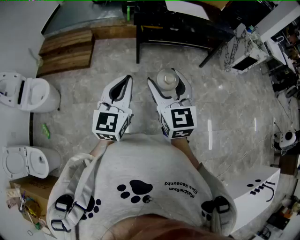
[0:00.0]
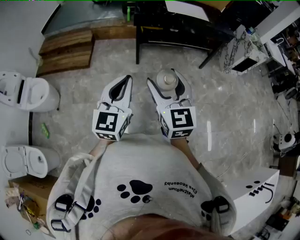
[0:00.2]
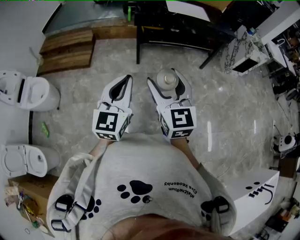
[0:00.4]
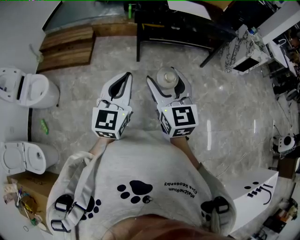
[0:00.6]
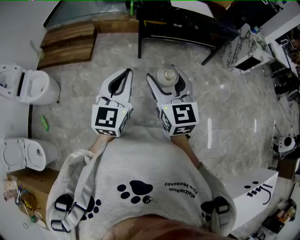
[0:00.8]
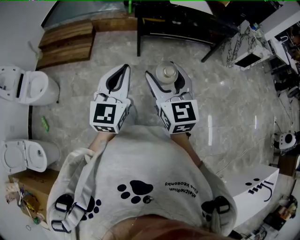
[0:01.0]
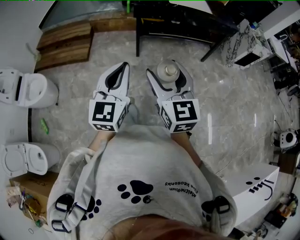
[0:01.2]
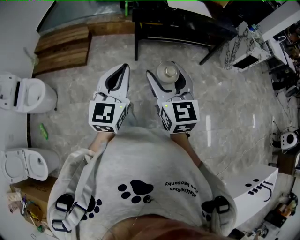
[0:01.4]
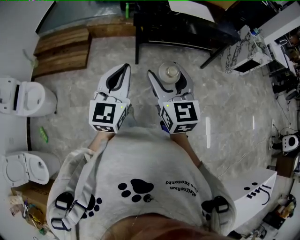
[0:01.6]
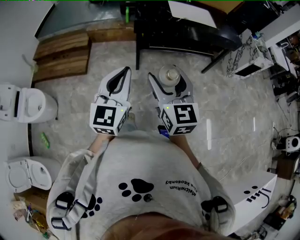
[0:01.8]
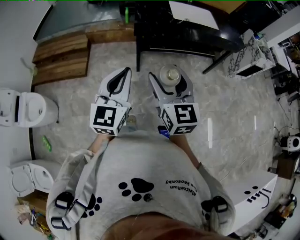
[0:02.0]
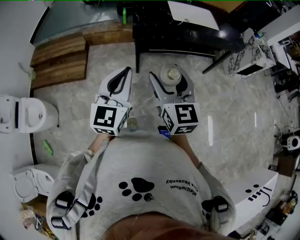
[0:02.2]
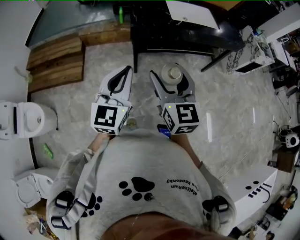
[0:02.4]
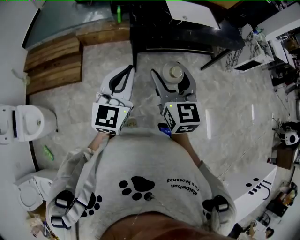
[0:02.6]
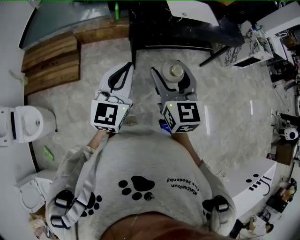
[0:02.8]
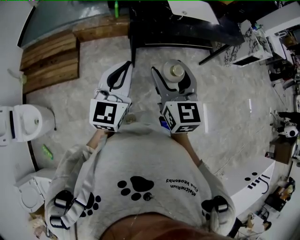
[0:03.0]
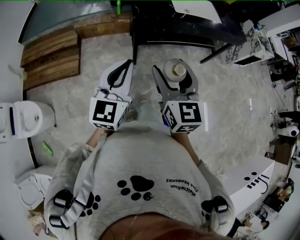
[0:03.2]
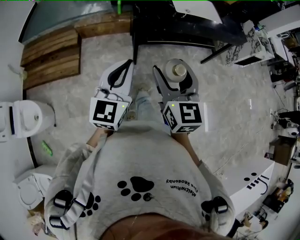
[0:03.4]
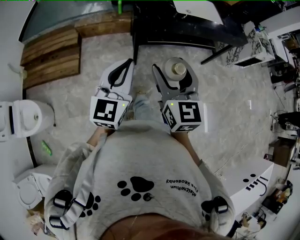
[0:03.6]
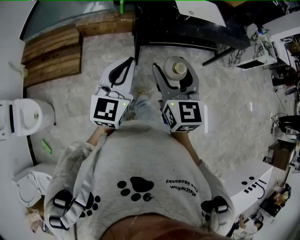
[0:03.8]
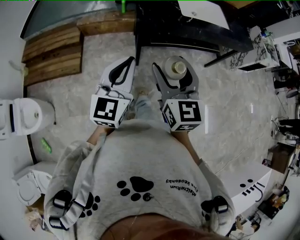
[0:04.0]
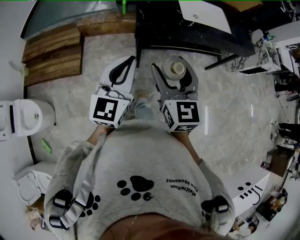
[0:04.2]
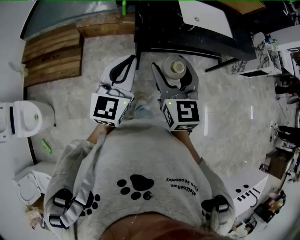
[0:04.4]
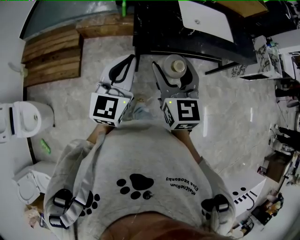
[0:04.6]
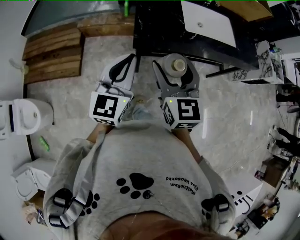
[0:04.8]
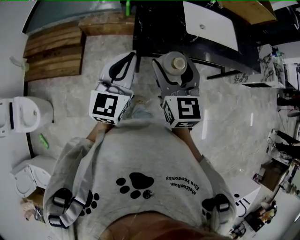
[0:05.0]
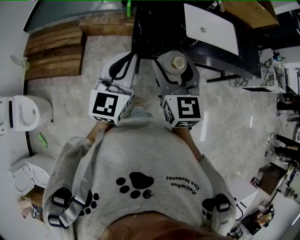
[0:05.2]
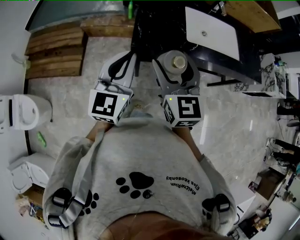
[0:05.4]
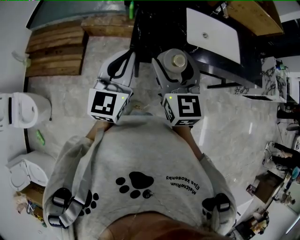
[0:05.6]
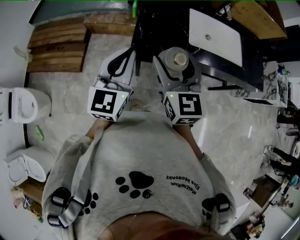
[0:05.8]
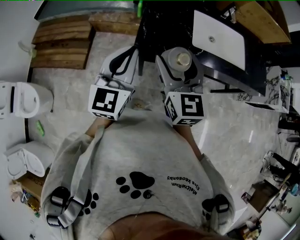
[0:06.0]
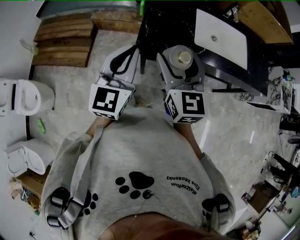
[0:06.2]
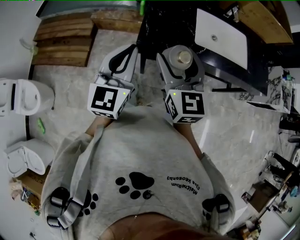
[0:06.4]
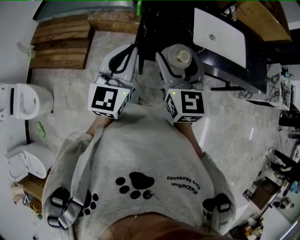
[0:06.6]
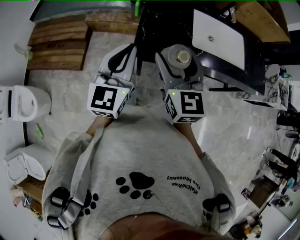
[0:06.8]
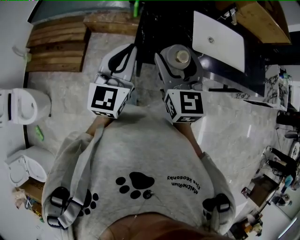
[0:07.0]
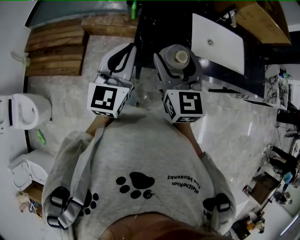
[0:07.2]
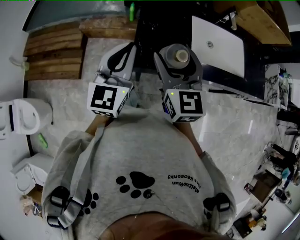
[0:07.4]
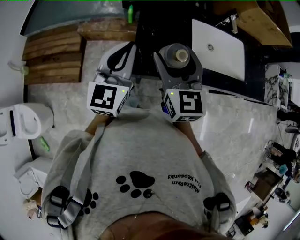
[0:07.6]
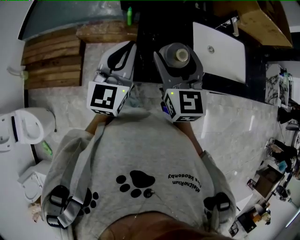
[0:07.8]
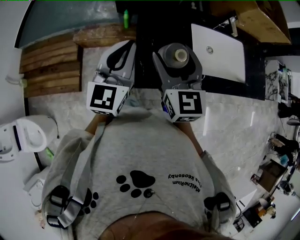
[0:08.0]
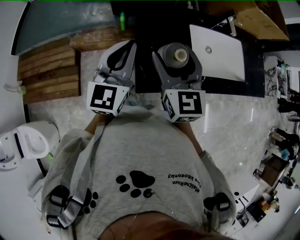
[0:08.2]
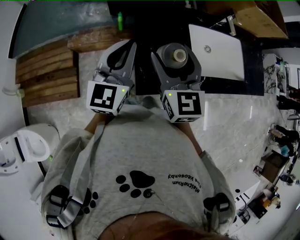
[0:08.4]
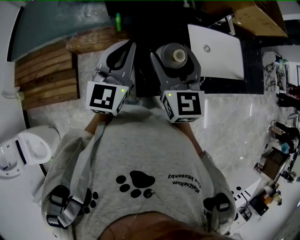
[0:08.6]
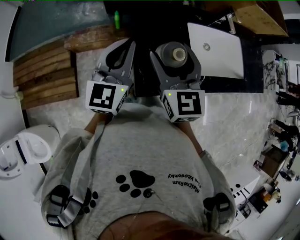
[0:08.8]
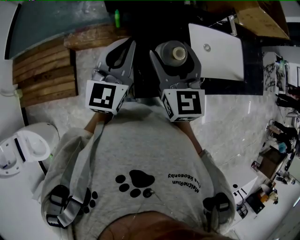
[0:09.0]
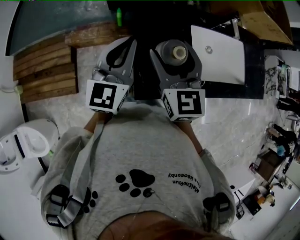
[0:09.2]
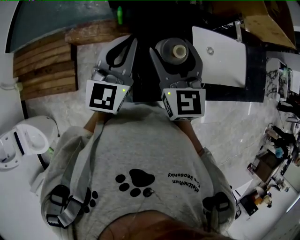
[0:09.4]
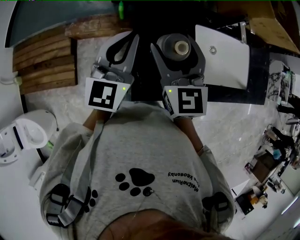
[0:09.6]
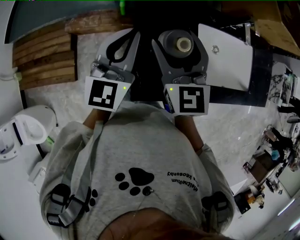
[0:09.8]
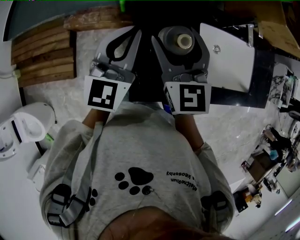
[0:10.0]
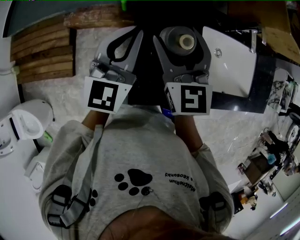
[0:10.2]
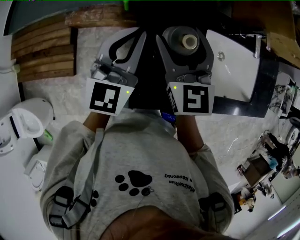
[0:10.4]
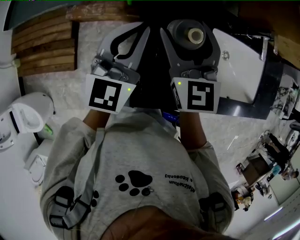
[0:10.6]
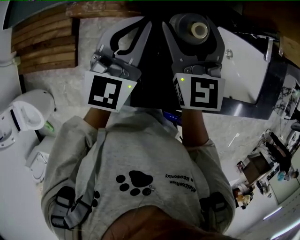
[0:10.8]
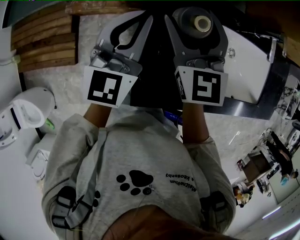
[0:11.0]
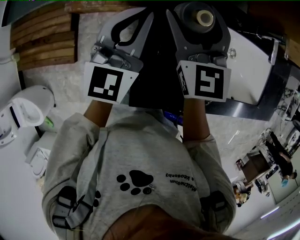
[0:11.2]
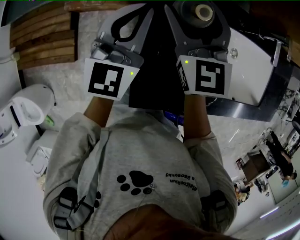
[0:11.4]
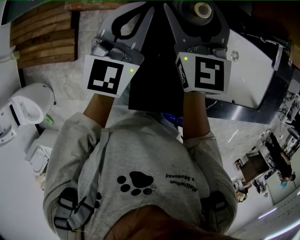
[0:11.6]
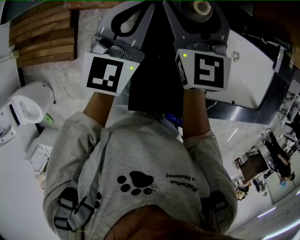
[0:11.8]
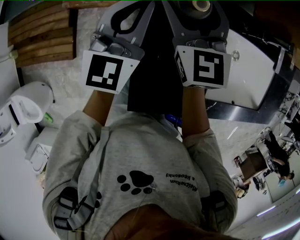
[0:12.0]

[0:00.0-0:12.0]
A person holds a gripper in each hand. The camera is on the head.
0.0 to 1.6 s: Both grippers move forward, roughly 15 cm.
1.6 to 3.0 s: The two grippers go roughly 20 cm forward.
3.0 to 4.4 s: Both grippers move forward, approximately 15 cm.
4.4 to 6.0 s: Both grippers move forward, roughly 15 cm.
6.0 to 7.6 s: The grippers both shift forward by about 15 cm.
7.6 to 9.0 s: Both grippers travel together forward, some 10 cm.
9.0 to 10.4 s: Both grippers travel together forward, roughly 10 cm.
10.4 to 12.0 s: The two grippers go approximately 10 cm forward and downward.

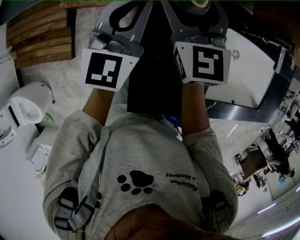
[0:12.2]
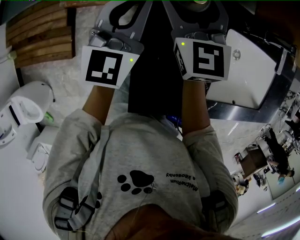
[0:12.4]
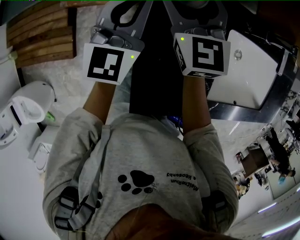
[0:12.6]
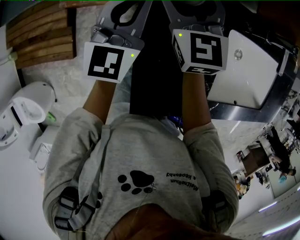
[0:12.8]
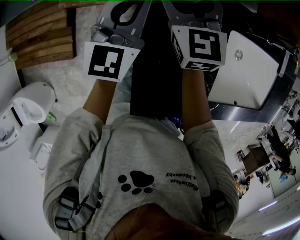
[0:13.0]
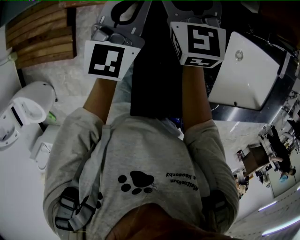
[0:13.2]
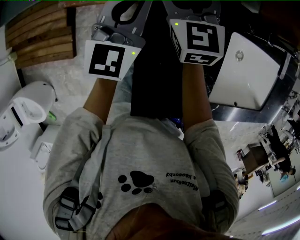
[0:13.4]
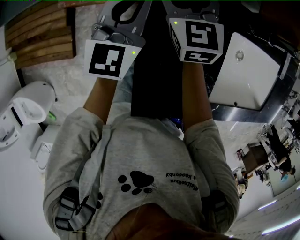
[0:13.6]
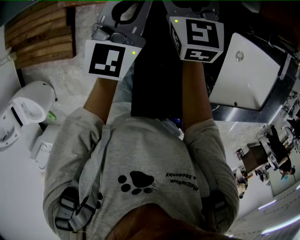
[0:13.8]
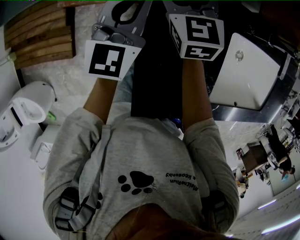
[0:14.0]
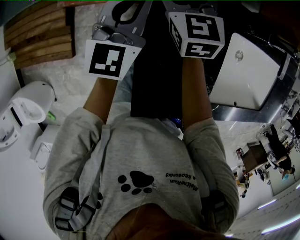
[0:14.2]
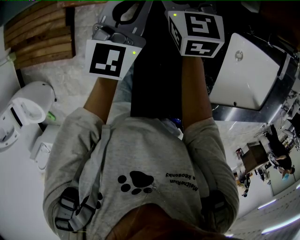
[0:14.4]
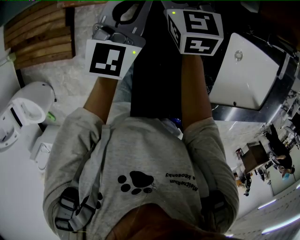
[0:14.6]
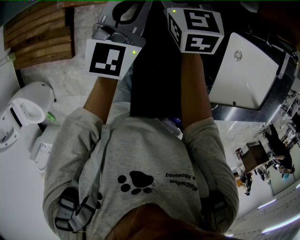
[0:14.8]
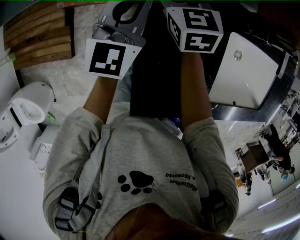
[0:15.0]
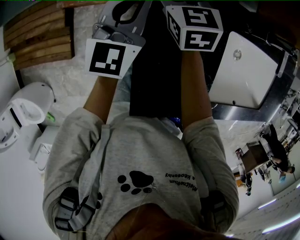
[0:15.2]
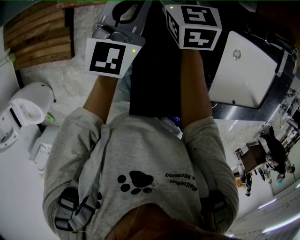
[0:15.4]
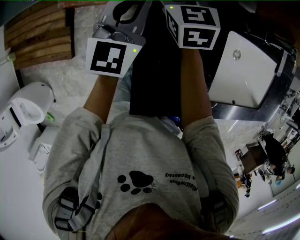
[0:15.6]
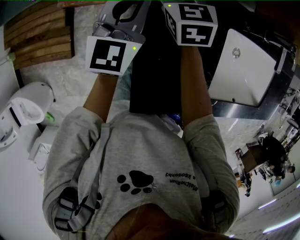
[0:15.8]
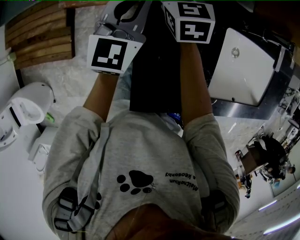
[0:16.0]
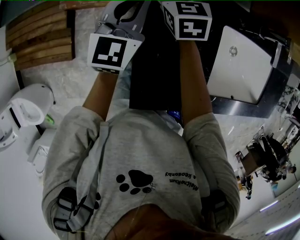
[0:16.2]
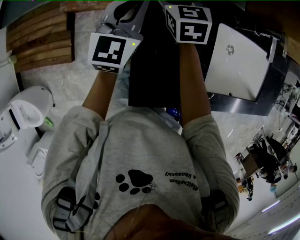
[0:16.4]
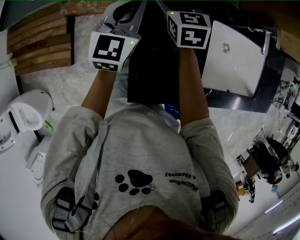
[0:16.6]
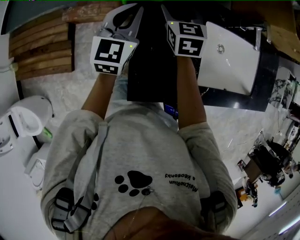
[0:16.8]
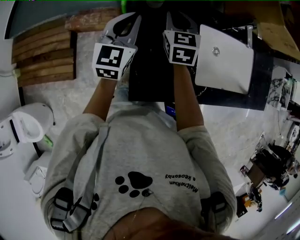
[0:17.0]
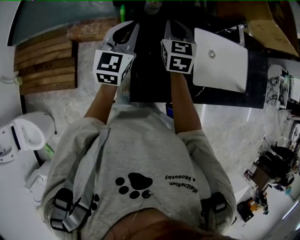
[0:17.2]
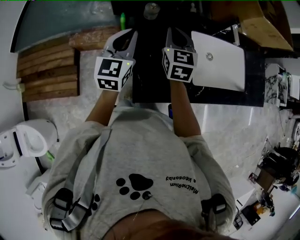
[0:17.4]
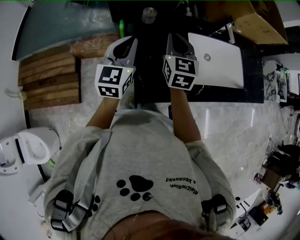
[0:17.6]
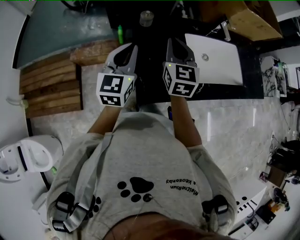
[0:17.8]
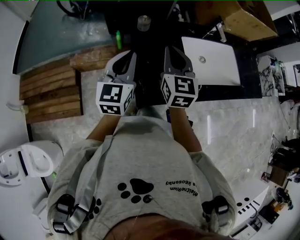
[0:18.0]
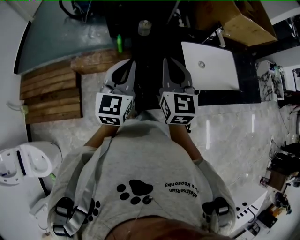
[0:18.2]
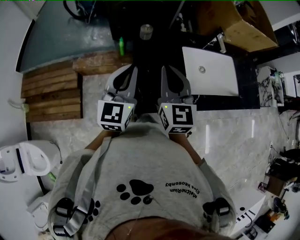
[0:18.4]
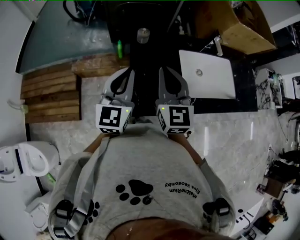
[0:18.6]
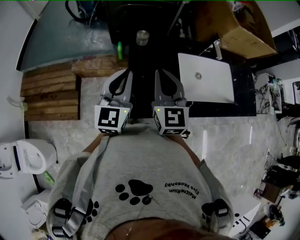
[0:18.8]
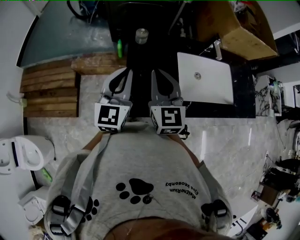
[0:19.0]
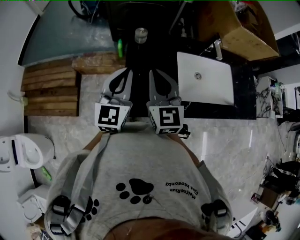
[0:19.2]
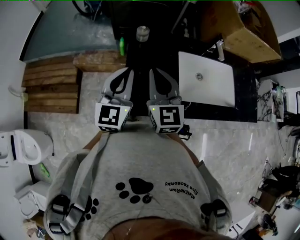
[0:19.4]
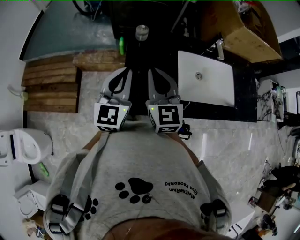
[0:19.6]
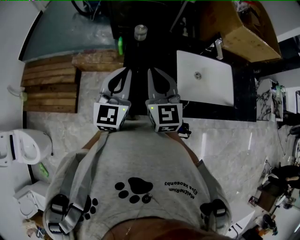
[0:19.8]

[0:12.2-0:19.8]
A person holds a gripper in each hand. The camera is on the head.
12.2 to 13.8 s: The left gripper shifts by approximately 5 cm, while the right gripper heads downward and forward, covering approximately 10 cm.
13.8 to 15.2 s: The grippers stay close to where they were, moving slightly.
15.2 to 16.8 s: The right gripper is displaced backward, to the right and upward by about 10 cm. The left gripper heads backward, covering approximately 5 cm.
16.8 to 18.2 s: The two grippers go approximately 25 cm backward and upward. The right gripper changes its angle by about 30 degrees, and closes its fingers.
18.2 to 19.8 s: The grippers stay close to where they were, moving slightly.

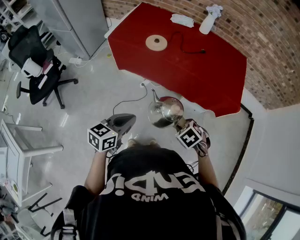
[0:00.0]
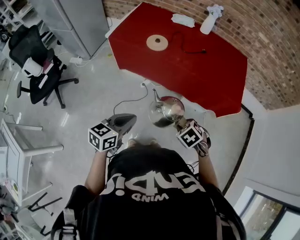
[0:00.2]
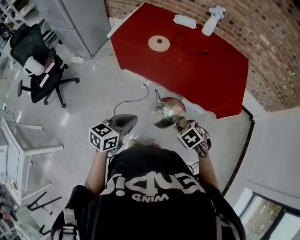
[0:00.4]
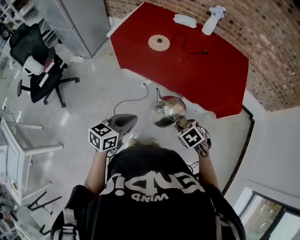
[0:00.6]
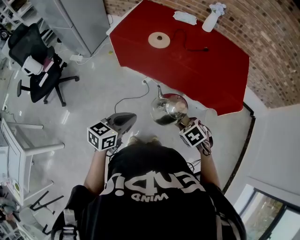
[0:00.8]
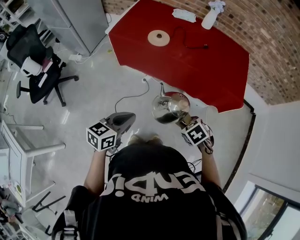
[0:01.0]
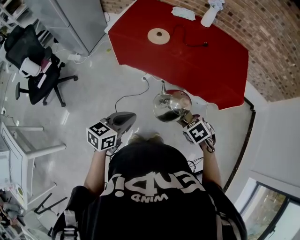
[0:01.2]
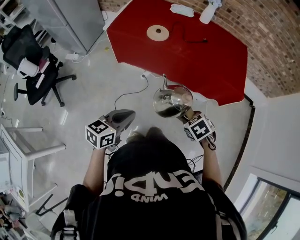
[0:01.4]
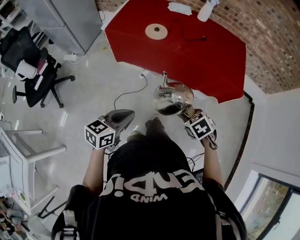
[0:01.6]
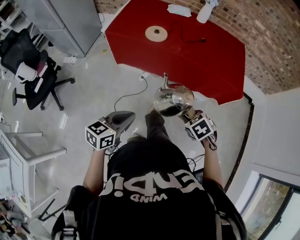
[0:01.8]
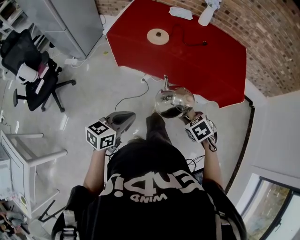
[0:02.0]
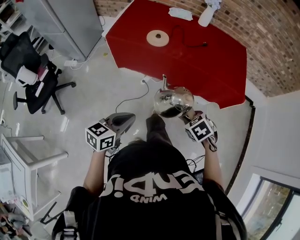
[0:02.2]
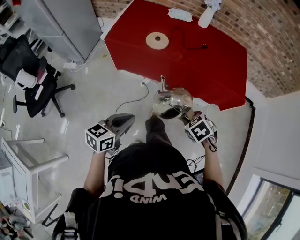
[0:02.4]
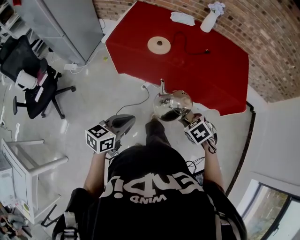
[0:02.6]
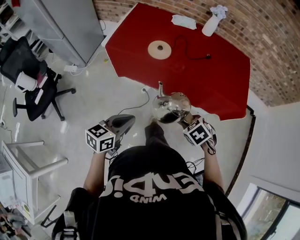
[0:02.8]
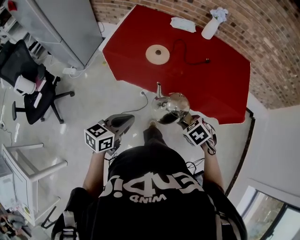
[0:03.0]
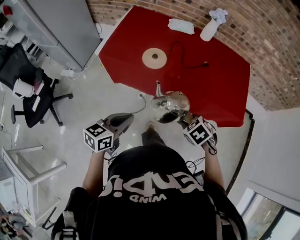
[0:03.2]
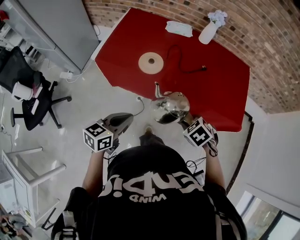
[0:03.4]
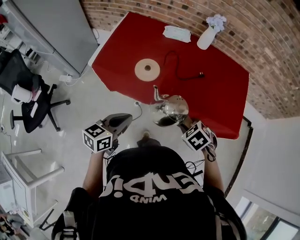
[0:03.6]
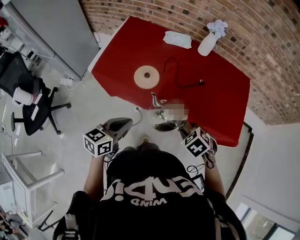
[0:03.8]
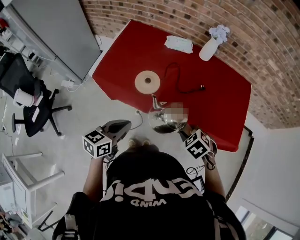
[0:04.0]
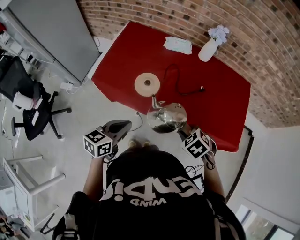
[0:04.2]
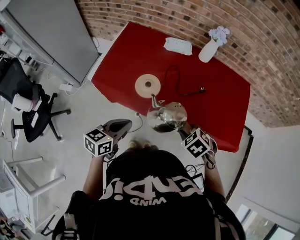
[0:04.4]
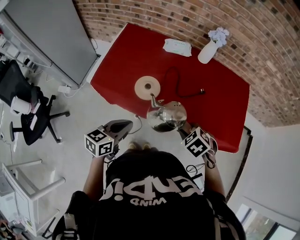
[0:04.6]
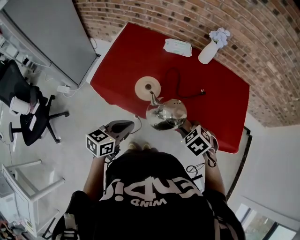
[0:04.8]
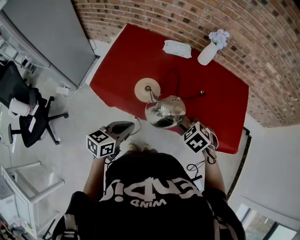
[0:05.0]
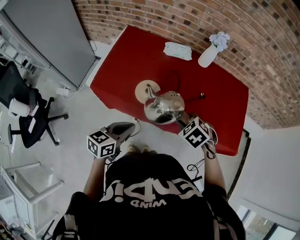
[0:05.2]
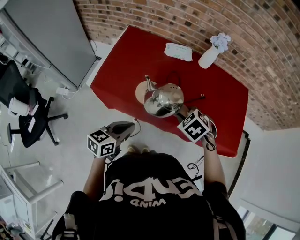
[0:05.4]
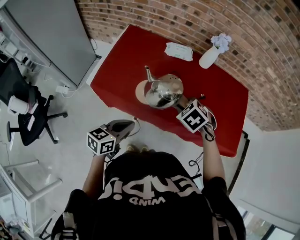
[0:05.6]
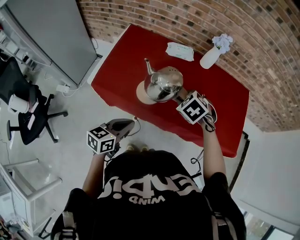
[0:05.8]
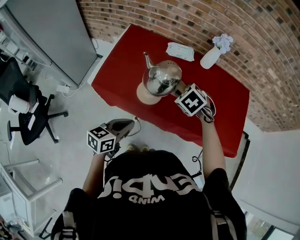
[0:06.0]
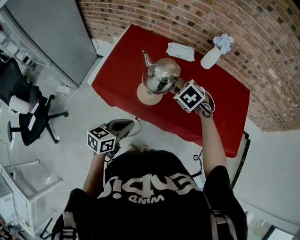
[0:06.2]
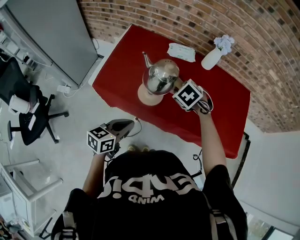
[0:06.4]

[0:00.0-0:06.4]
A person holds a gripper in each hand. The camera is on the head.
0.0 to 1.6 s: The left gripper ends up about 5 cm from where it was.
1.6 to 3.2 s: The two grippers go roughly 20 cm forward.
3.2 to 4.8 s: Both grippers move forward, roughly 15 cm.
4.8 to 6.4 s: The right gripper heads forward and to the left, covering about 20 cm.
